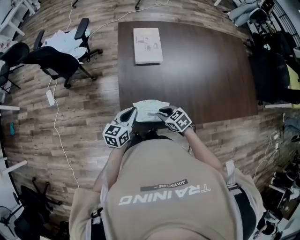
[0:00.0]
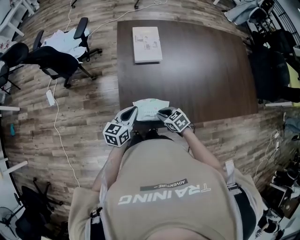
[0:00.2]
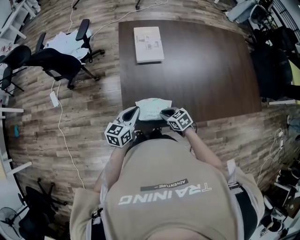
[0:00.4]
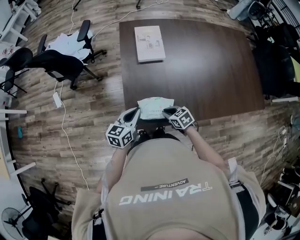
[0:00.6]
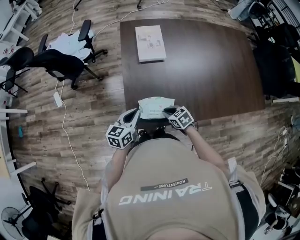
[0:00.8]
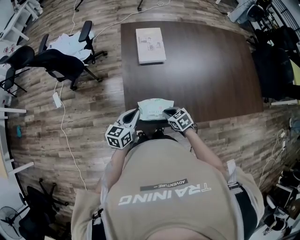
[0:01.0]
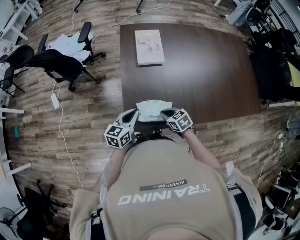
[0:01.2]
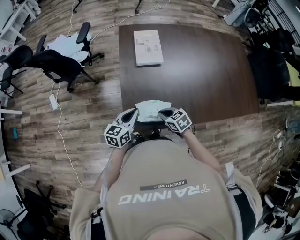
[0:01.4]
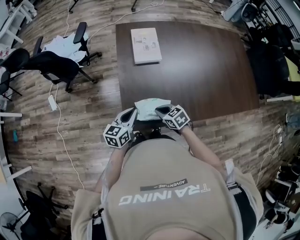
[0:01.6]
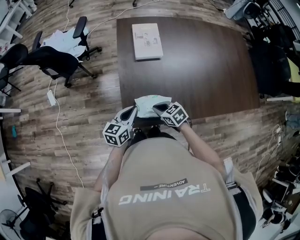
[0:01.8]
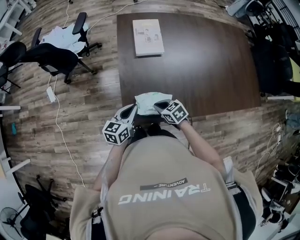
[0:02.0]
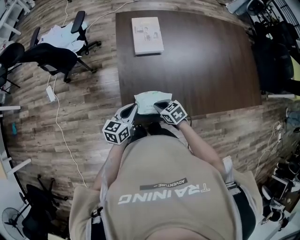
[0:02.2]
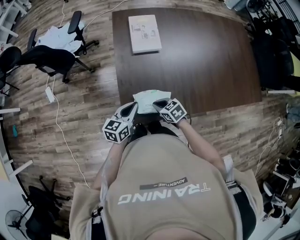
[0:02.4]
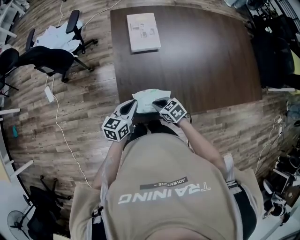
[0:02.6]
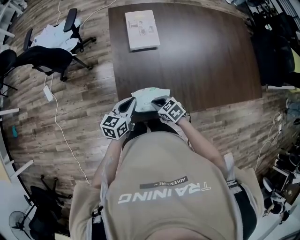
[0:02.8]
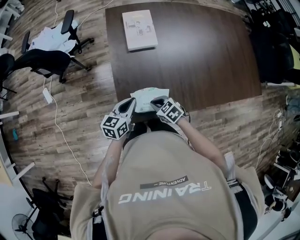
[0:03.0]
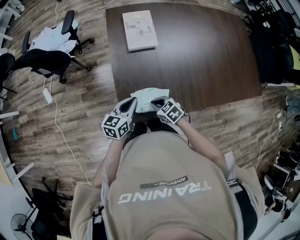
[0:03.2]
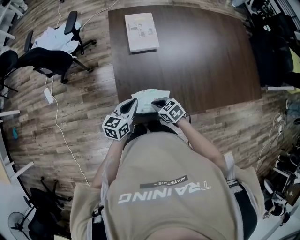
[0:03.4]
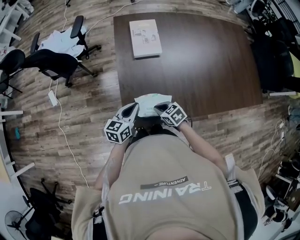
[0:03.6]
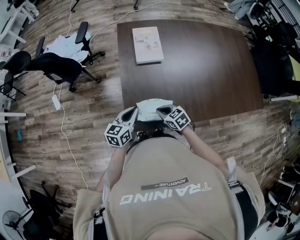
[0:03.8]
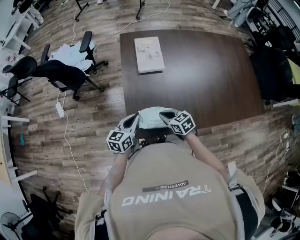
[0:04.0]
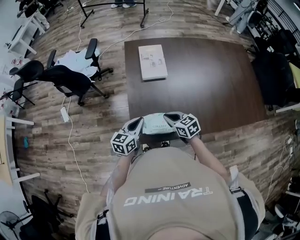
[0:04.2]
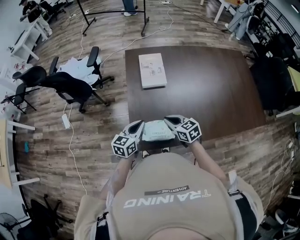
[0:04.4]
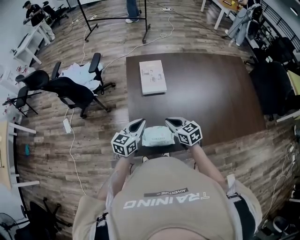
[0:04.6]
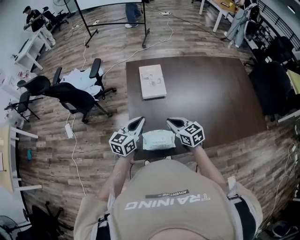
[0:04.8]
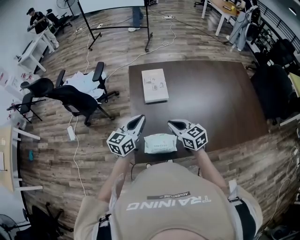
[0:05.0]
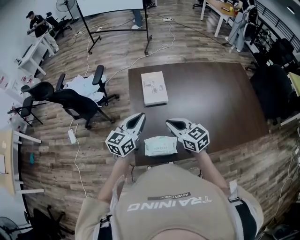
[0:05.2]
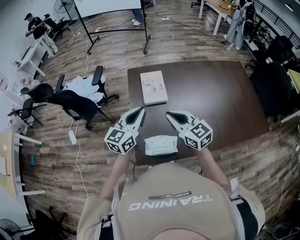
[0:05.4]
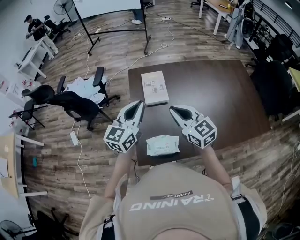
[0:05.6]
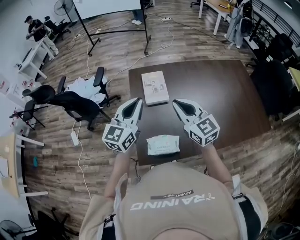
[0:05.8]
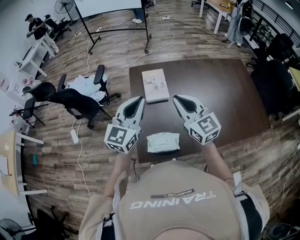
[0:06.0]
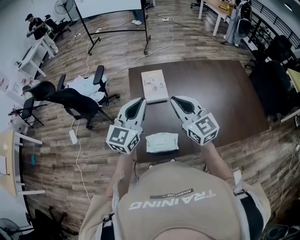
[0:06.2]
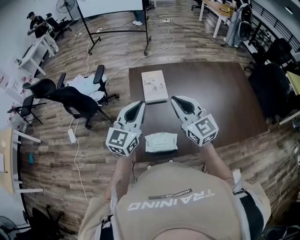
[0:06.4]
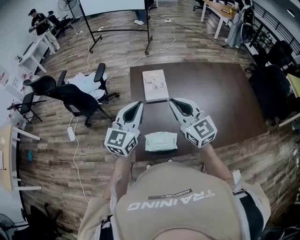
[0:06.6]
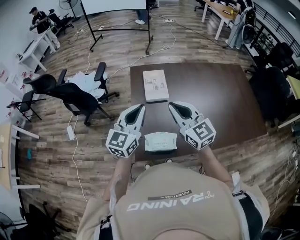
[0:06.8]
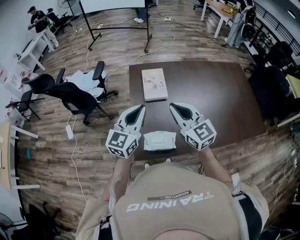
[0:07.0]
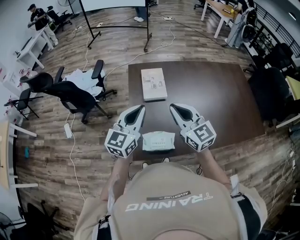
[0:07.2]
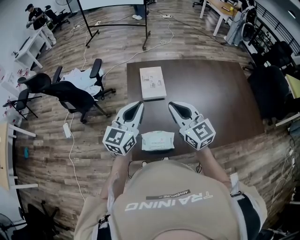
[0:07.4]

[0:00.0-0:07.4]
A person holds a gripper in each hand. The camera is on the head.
0:00.0 to 0:03.0: The grippers move only a little.
0:03.0 to 0:04.4: The right gripper is displaced upward by approximately 10 cm, and rotates roughly 30 degrees. The left gripper is displaced upward by roughly 5 cm.
0:04.4 to 0:06.0: The grippers both shift upward by some 25 cm. The right gripper swivels some 40 degrees. Meanwhile the left gripper rotates some 30 degrees.
0:06.0 to 0:07.4: The grippers make only small movements.

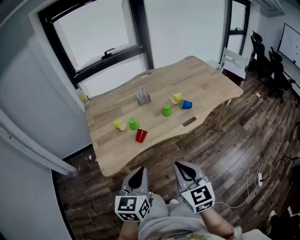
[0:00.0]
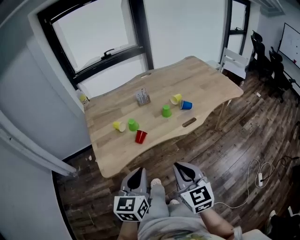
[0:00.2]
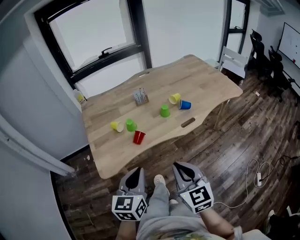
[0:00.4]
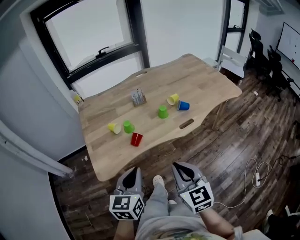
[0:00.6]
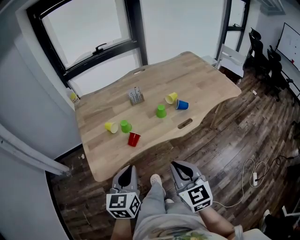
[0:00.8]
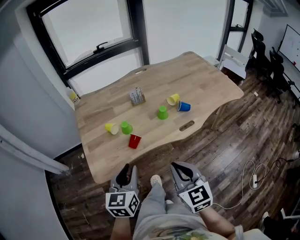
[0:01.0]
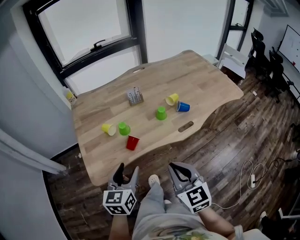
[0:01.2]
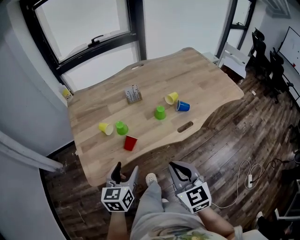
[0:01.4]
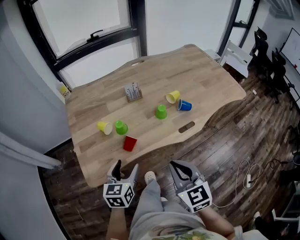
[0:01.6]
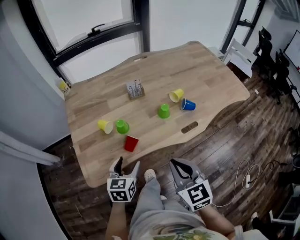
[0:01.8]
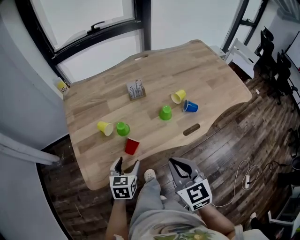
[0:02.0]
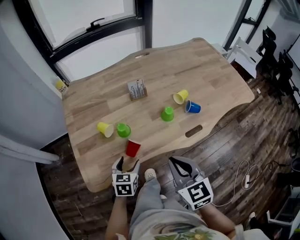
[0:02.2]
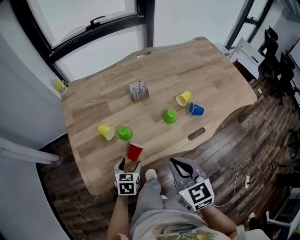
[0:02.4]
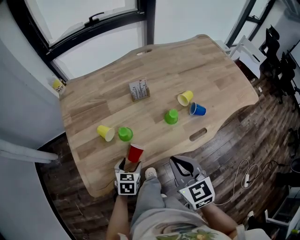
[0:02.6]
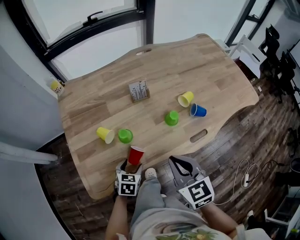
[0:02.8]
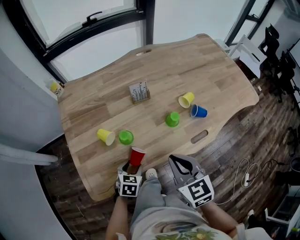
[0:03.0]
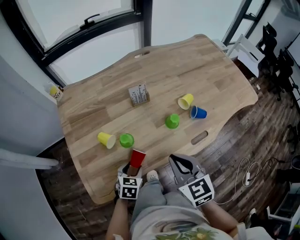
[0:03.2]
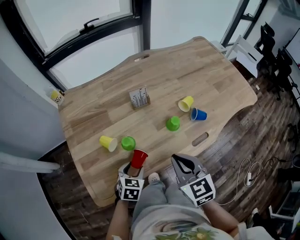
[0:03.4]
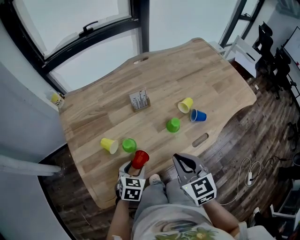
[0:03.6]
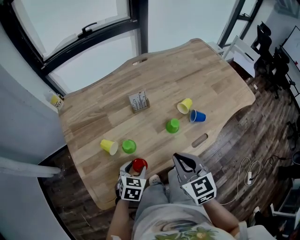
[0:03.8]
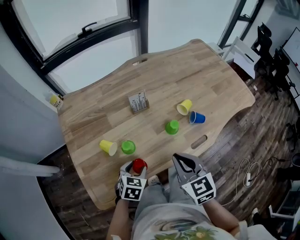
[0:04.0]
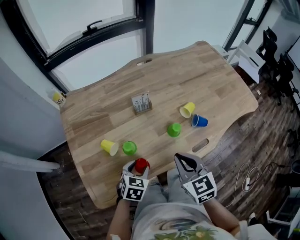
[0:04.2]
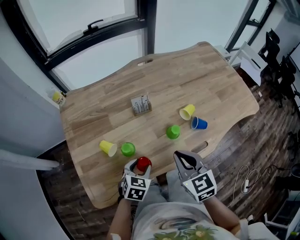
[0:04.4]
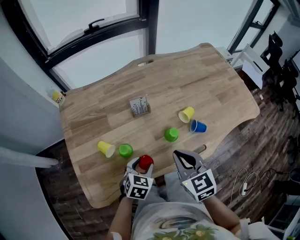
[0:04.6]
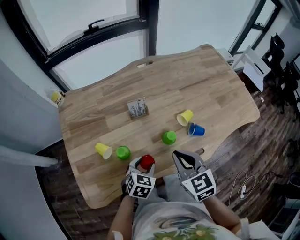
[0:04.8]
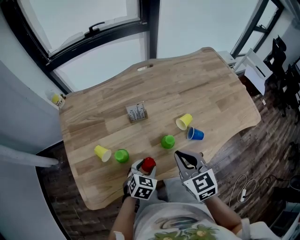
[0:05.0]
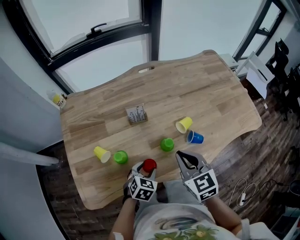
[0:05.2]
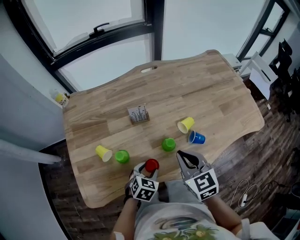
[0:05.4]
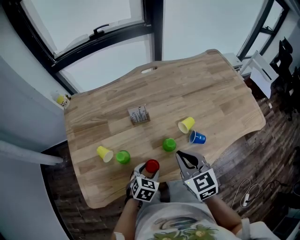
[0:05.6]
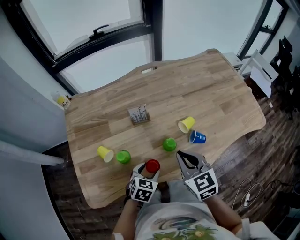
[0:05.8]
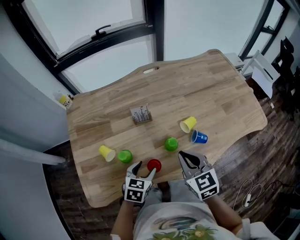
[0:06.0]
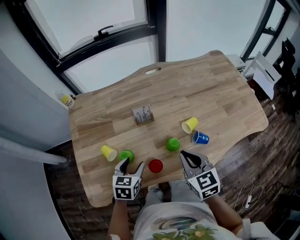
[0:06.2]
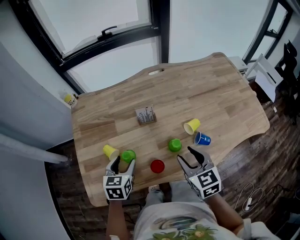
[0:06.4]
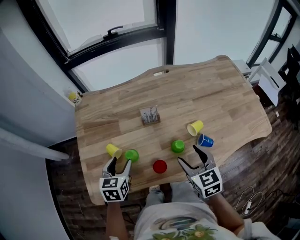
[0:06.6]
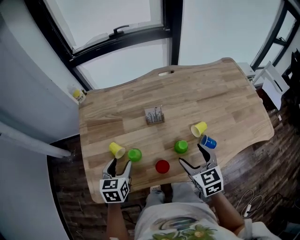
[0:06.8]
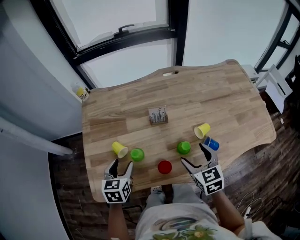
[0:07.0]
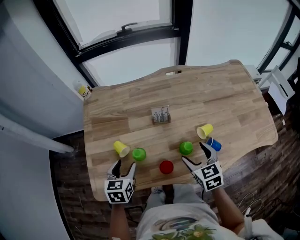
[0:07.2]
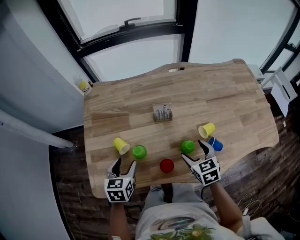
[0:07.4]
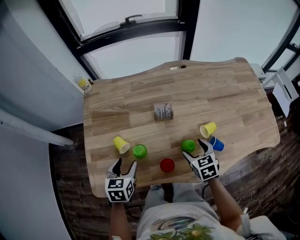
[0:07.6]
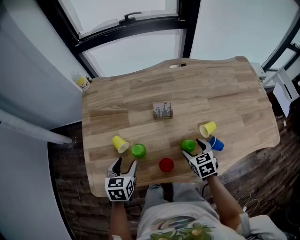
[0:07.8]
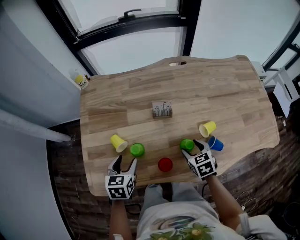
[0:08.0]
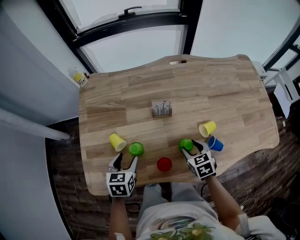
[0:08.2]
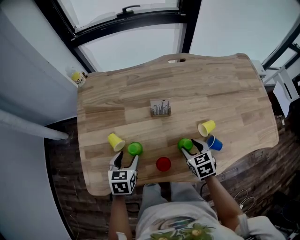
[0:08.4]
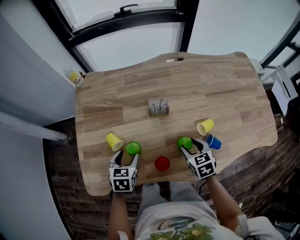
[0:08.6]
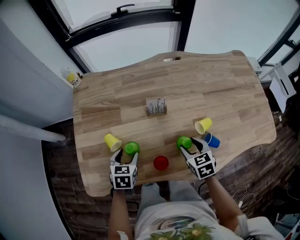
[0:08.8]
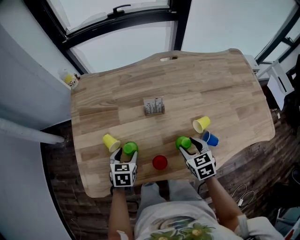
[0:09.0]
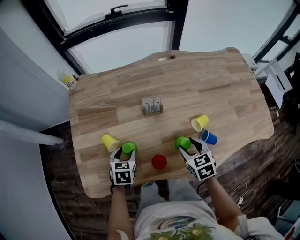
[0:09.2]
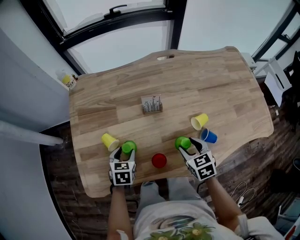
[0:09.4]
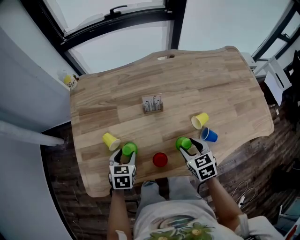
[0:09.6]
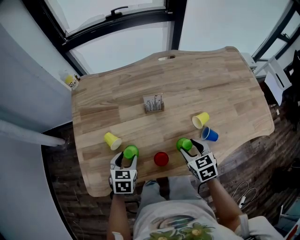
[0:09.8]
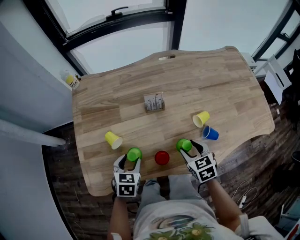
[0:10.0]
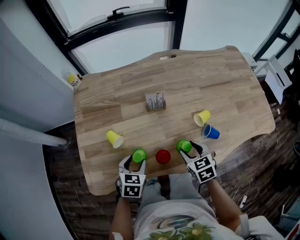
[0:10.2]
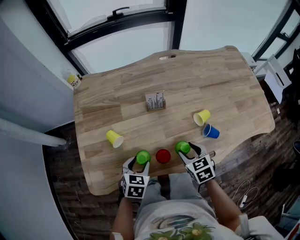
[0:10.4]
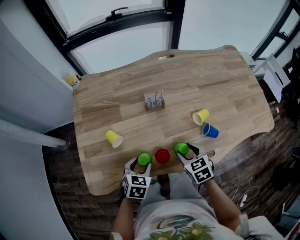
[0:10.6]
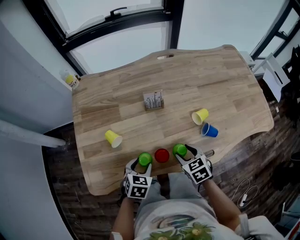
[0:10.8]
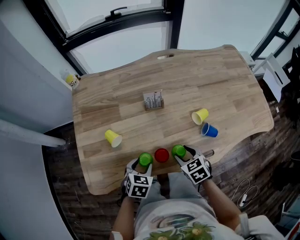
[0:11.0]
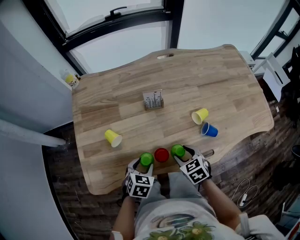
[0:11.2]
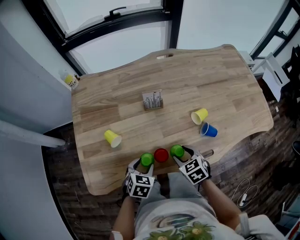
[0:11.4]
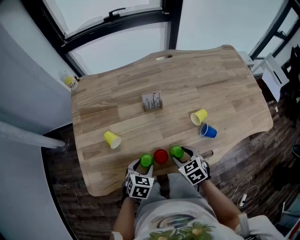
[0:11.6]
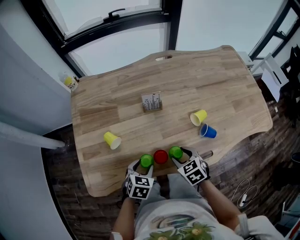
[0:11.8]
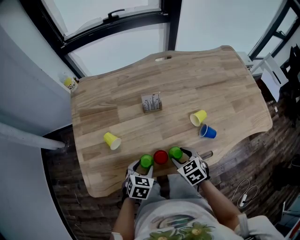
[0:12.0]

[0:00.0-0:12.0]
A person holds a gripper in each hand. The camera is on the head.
0:00.0 to 0:01.6: The grippers both shift forward and downward by about 15 cm. The left gripper opens up.
0:01.6 to 0:03.0: The right gripper travels forward by roughly 15 cm. The left gripper moves downward and forward, about 20 cm, and changes its angle by some 30 degrees.
0:03.0 to 0:04.4: The left gripper is displaced upward and forward by approximately 10 cm. The right gripper travels forward by about 5 cm.
0:04.4 to 0:06.0: The left gripper heads to the right, covering roughly 5 cm. The right gripper is displaced to the right and forward by some 10 cm.
0:06.0 to 0:07.6: The left gripper is displaced to the left by some 15 cm, and rotates roughly 30 degrees, while the right gripper heads downward and forward, covering approximately 15 cm, and opens.
0:07.6 to 0:09.0: The left gripper moves downward, roughly 5 cm. Meanwhile the right gripper closes its fingers.
0:09.0 to 0:10.4: The left gripper moves backward, roughly 10 cm; the right gripper is displaced backward by approximately 5 cm.
0:10.4 to 0:12.0: The grippers move only a little.

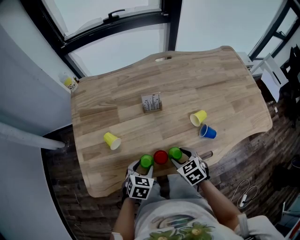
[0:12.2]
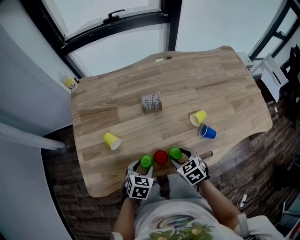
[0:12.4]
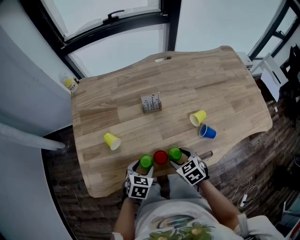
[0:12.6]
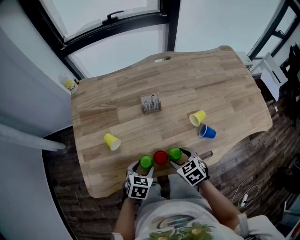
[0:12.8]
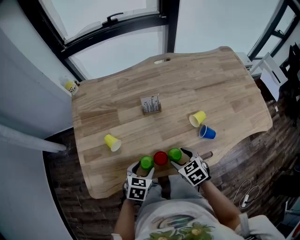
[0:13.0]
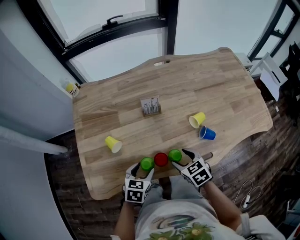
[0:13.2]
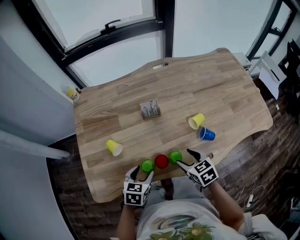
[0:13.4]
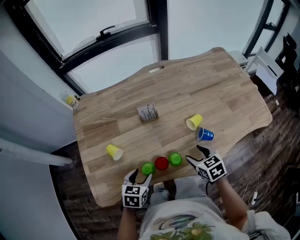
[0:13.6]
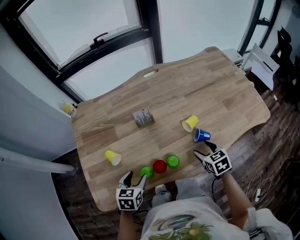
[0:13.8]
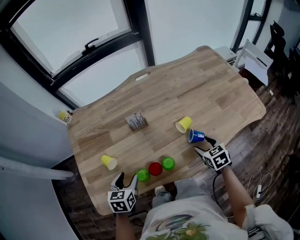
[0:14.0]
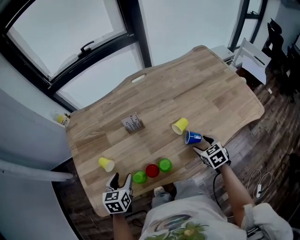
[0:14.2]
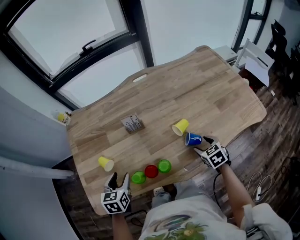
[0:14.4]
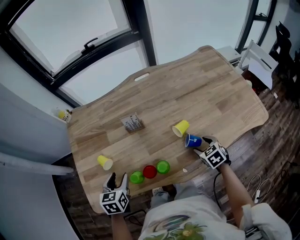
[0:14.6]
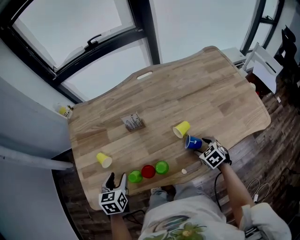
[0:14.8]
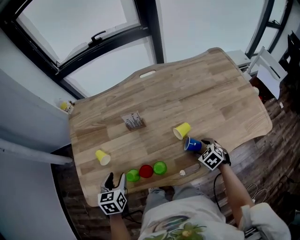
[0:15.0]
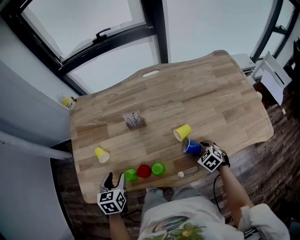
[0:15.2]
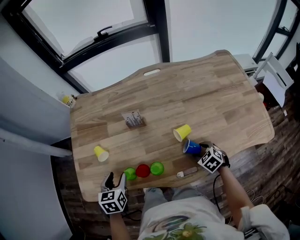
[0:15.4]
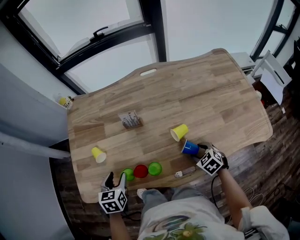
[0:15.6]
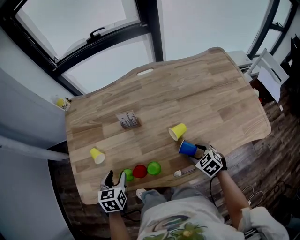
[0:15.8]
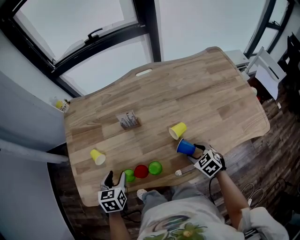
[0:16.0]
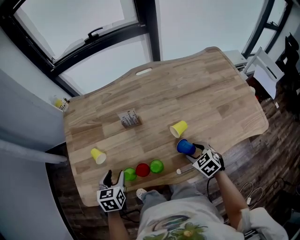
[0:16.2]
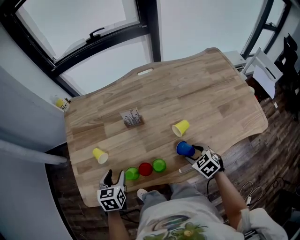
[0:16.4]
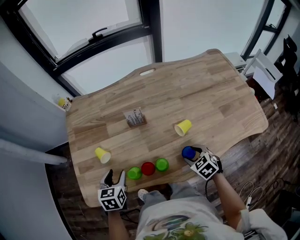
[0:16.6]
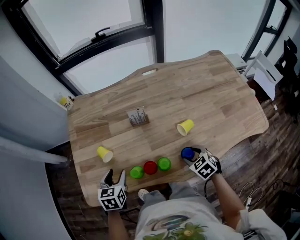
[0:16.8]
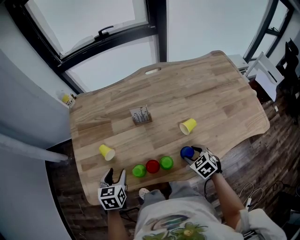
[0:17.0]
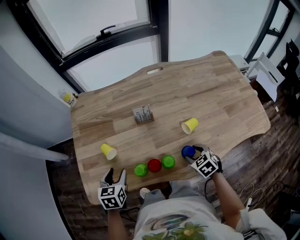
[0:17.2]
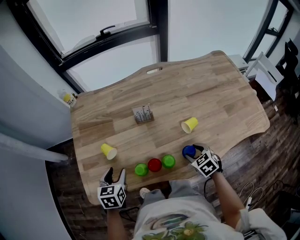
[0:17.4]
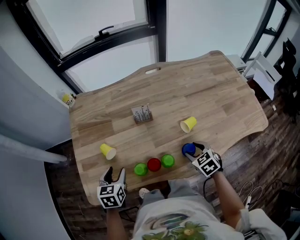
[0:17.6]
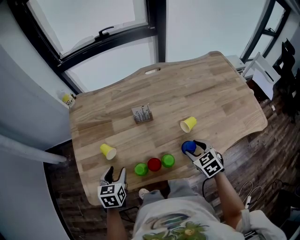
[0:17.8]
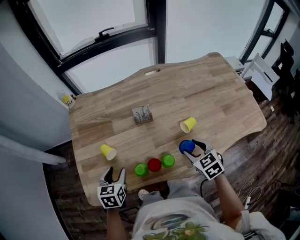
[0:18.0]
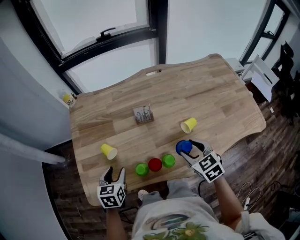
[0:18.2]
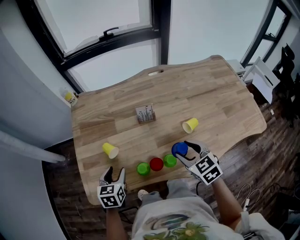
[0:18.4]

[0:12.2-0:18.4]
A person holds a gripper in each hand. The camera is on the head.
0:12.2 to 0:13.8: The right gripper goes approximately 15 cm to the right. Meanwhile the left gripper shifts some 5 cm upward.
0:13.8 to 0:15.4: The left gripper turns by about 20 degrees; the right gripper shifts approximately 10 cm downward and to the right, and turns by about 30 degrees.
0:15.4 to 0:16.8: The right gripper shifts about 10 cm to the left.
0:16.8 to 0:18.4: The right gripper goes roughly 15 cm upward and to the left.
